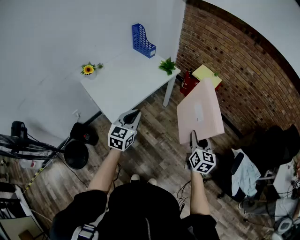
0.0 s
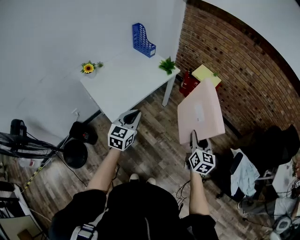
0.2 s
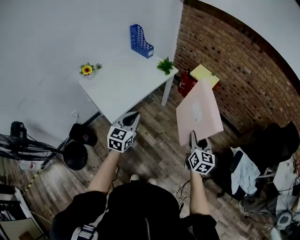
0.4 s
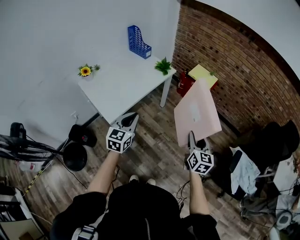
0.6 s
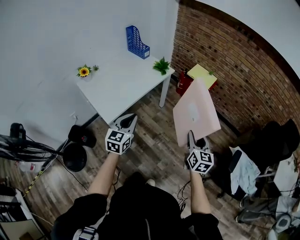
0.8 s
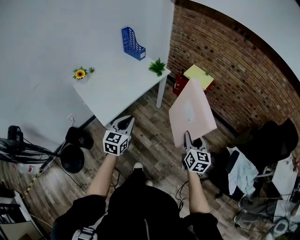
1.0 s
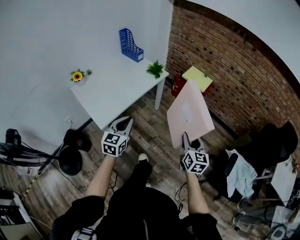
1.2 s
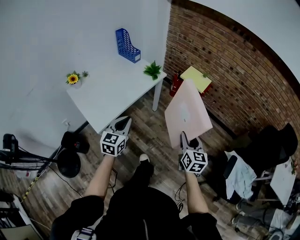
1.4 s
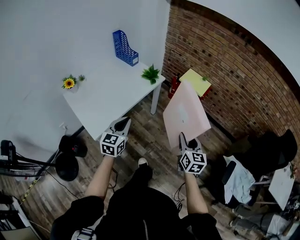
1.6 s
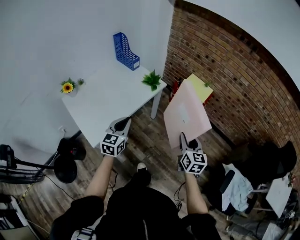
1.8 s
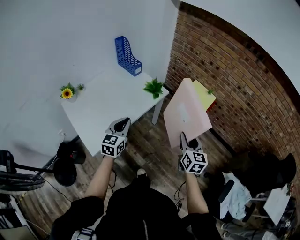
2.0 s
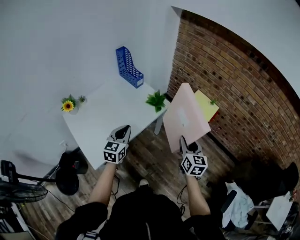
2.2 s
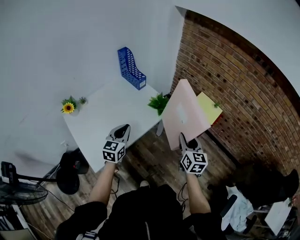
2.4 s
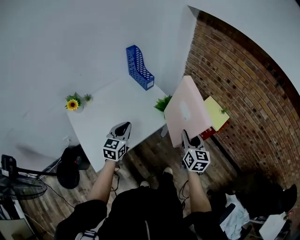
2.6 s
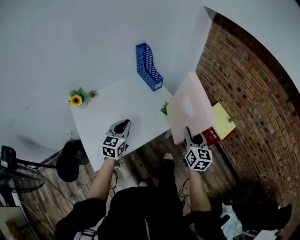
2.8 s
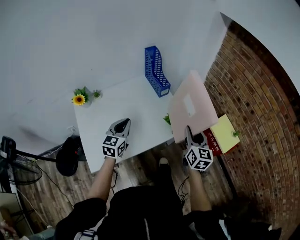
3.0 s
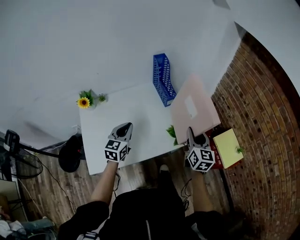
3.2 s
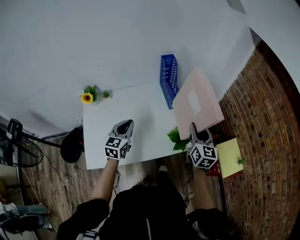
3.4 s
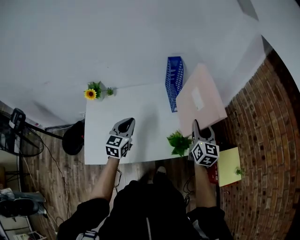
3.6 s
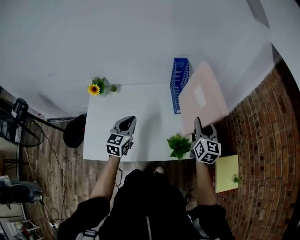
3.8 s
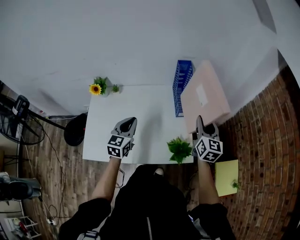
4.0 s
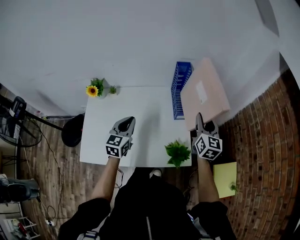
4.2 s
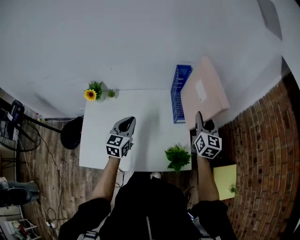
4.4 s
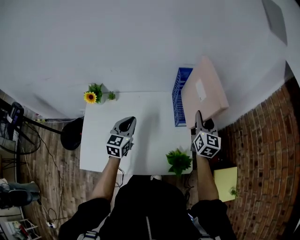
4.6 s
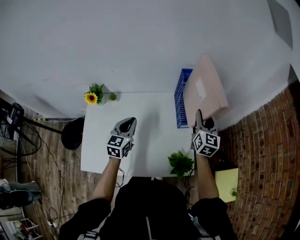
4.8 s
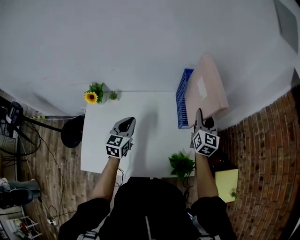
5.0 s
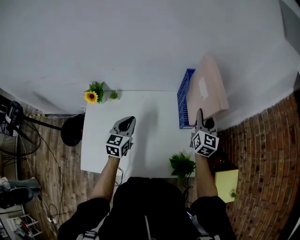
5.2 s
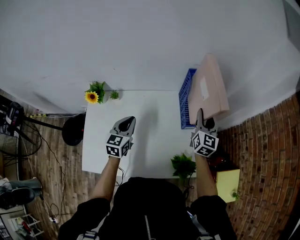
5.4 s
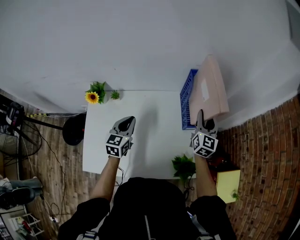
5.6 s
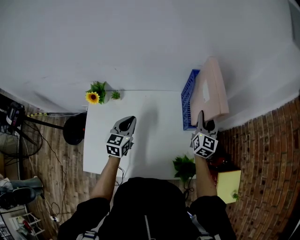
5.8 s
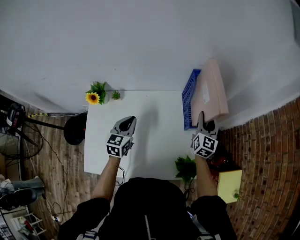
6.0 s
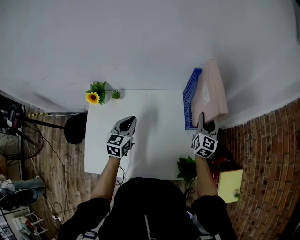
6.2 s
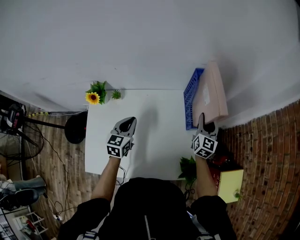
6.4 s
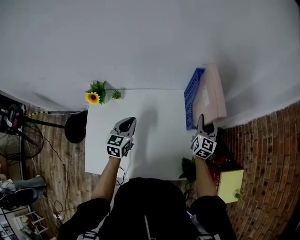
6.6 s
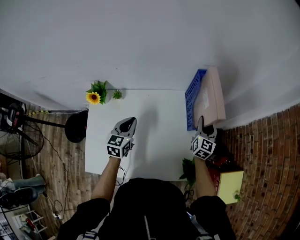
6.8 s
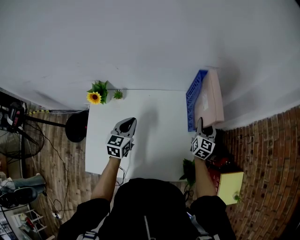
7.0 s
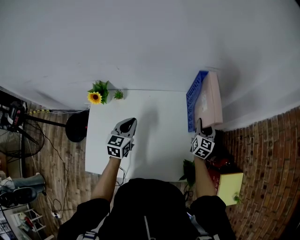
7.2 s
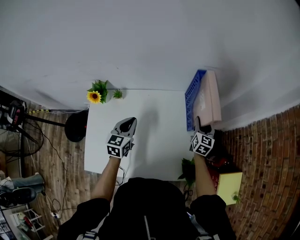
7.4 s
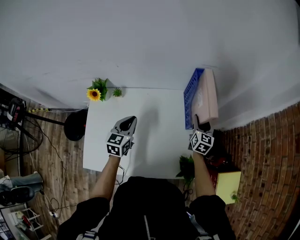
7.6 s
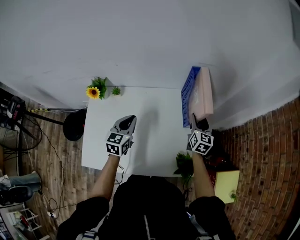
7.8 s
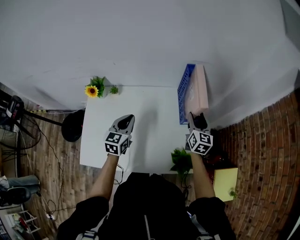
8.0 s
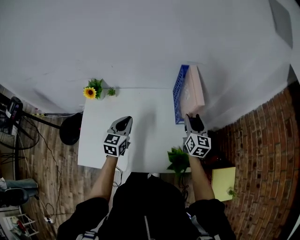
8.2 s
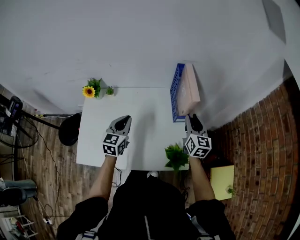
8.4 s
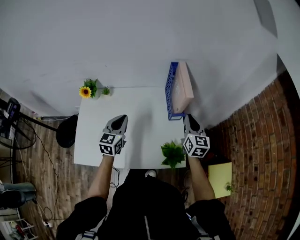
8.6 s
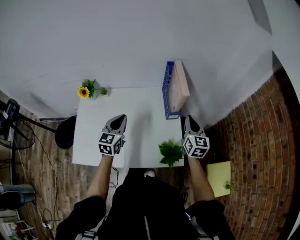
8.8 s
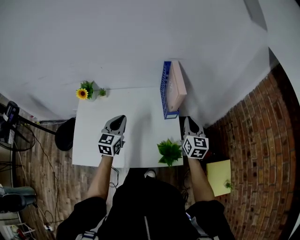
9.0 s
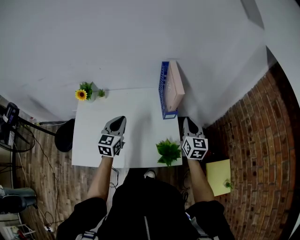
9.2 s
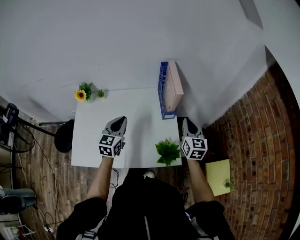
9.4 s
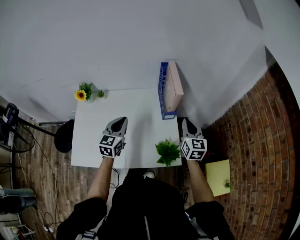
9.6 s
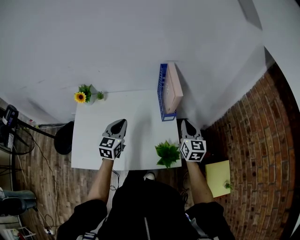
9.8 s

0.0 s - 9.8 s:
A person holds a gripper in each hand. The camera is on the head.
0.0 s - 1.4 s: The left gripper moves roughly 5 cm. The right gripper travels forward by some 5 cm.
1.4 s - 2.8 s: The grippers both shift forward by about 35 cm.
2.8 s - 4.2 s: The right gripper ends up approximately 40 cm from where it was, and changes its angle by approximately 30 degrees. The left gripper changes place by approximately 15 cm, and swivels roughly 30 degrees.
4.2 s - 5.6 s: The grippers both shift forward and to the left by approximately 10 cm.
5.6 s - 7.0 s: The right gripper travels downward by some 10 cm.
7.0 s - 8.4 s: The left gripper goes about 10 cm backward, to the right and upward. The right gripper heads upward and backward, covering about 15 cm.
8.4 s - 9.8 s: The left gripper moves about 5 cm. The right gripper is displaced backward by approximately 5 cm, and closes.

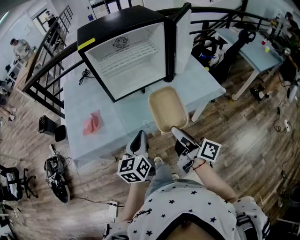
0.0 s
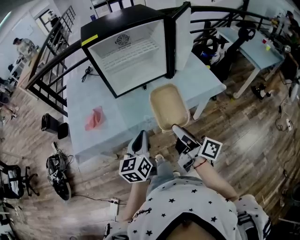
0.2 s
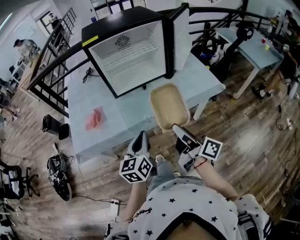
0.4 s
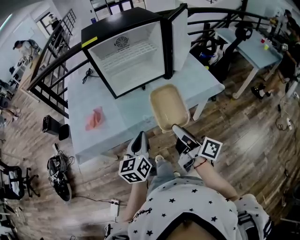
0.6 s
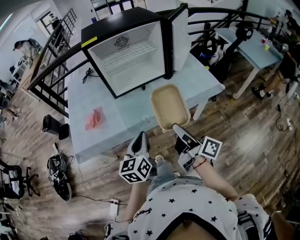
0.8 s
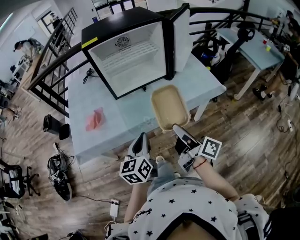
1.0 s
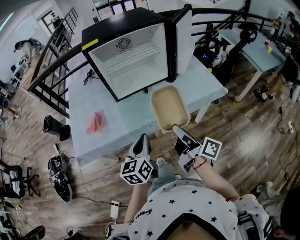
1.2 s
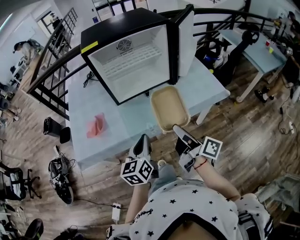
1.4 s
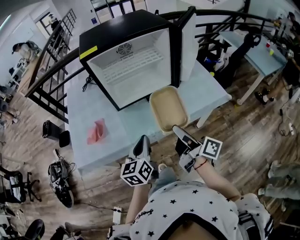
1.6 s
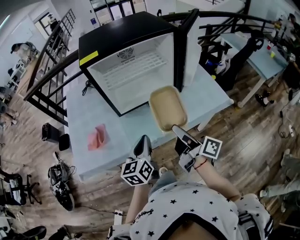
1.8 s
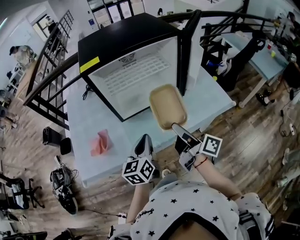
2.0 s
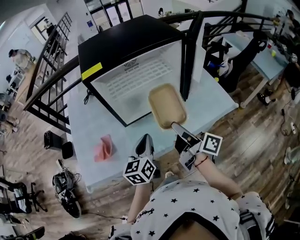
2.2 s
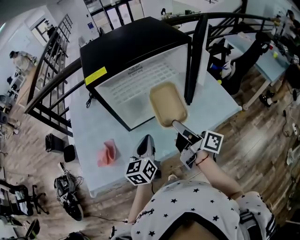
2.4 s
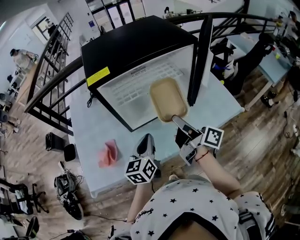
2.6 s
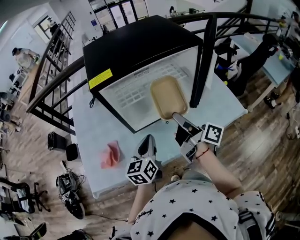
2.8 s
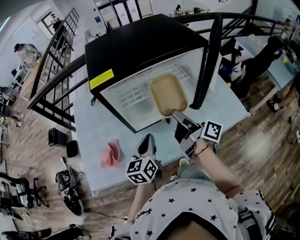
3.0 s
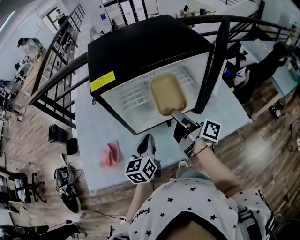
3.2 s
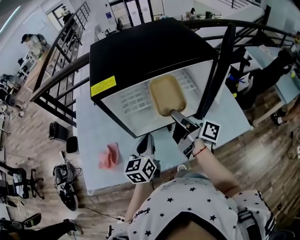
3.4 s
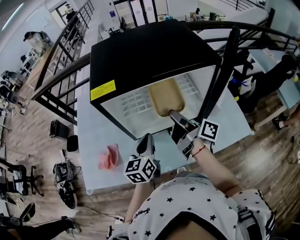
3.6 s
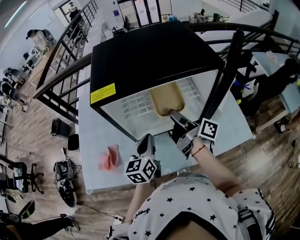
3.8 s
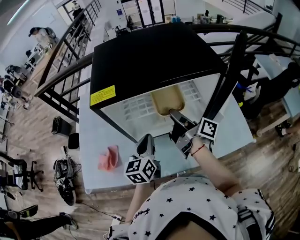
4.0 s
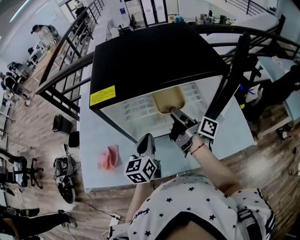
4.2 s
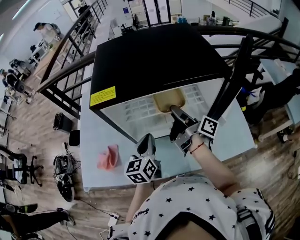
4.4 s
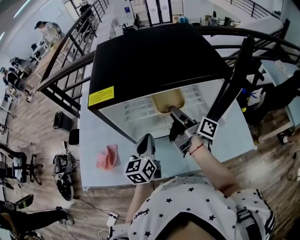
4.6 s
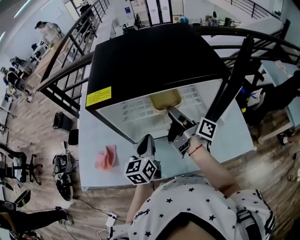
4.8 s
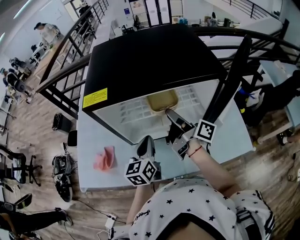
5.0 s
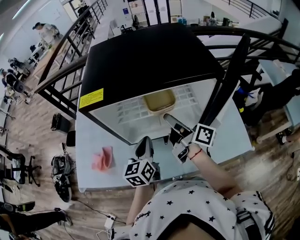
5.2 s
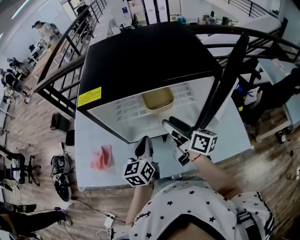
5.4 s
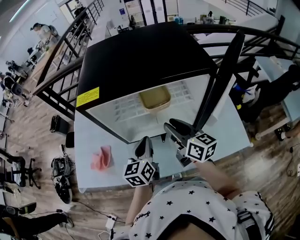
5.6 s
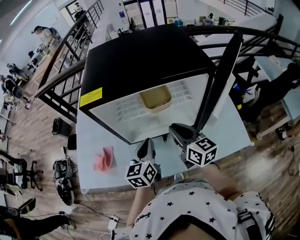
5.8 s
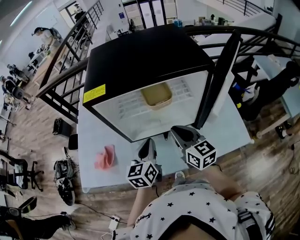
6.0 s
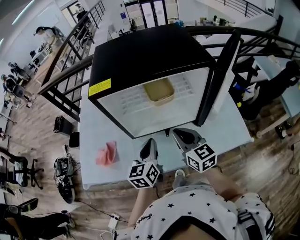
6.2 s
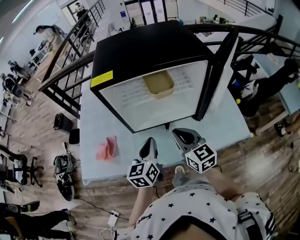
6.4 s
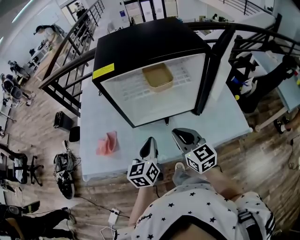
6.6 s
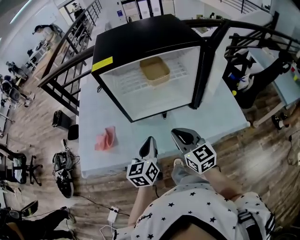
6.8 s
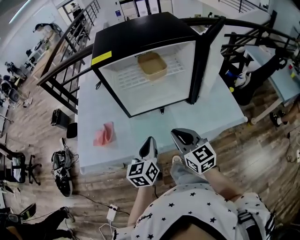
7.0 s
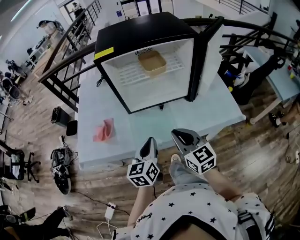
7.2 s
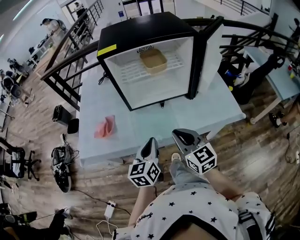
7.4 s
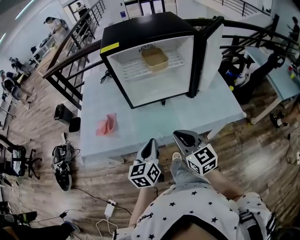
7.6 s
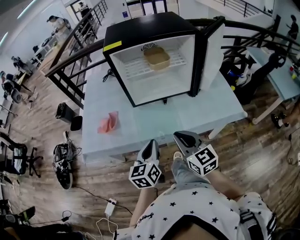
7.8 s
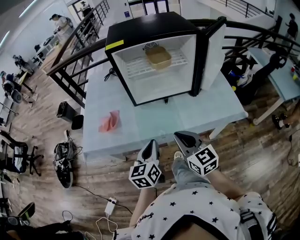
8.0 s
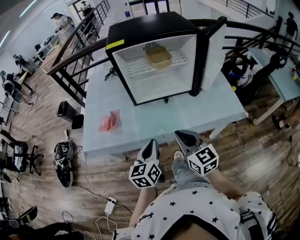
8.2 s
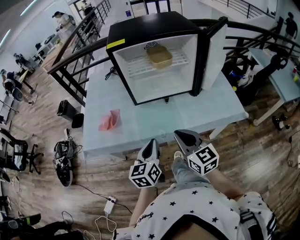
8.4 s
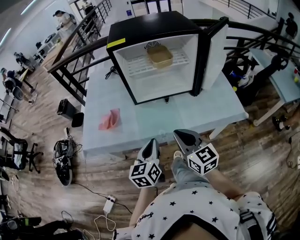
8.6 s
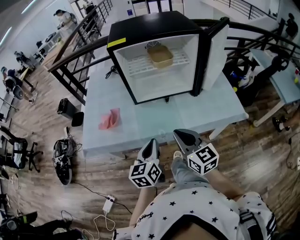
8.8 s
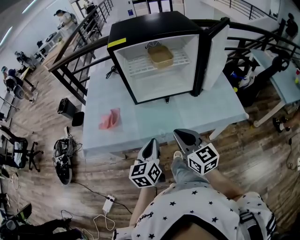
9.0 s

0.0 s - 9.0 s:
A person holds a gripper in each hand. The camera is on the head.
0.0 s - 1.6 s: The right gripper shifts roughly 5 cm forward.
1.6 s - 3.0 s: Both grippers travel together forward, some 20 cm.
3.0 s - 4.4 s: The left gripper goes approximately 5 cm forward. The right gripper travels forward by roughly 10 cm.
4.4 s - 6.0 s: The right gripper shifts some 10 cm backward, rolls counterclockwise, seen from behind, by approximately 70 degrees, and closes its fingers.
6.0 s - 7.6 s: The two grippers go some 20 cm backward.
7.6 s - 9.0 s: There are only small adjustments of the grippers.

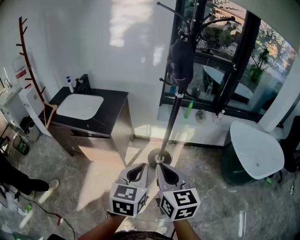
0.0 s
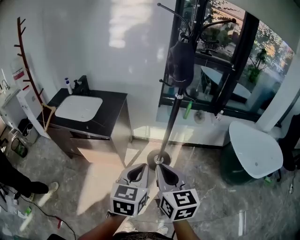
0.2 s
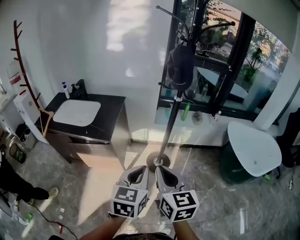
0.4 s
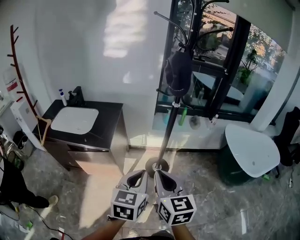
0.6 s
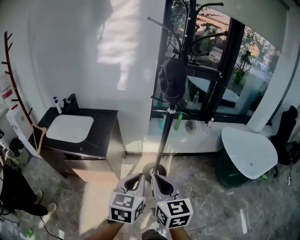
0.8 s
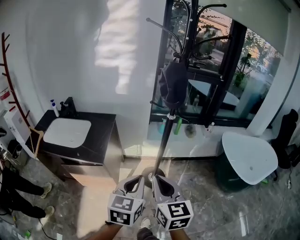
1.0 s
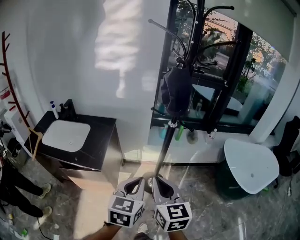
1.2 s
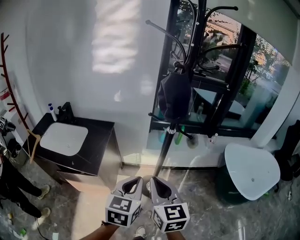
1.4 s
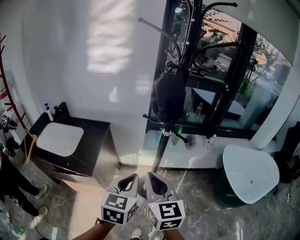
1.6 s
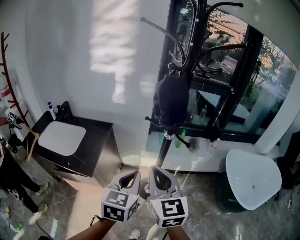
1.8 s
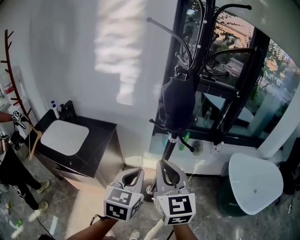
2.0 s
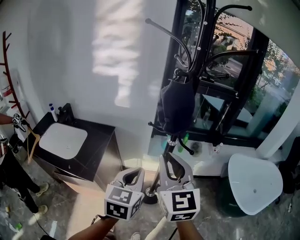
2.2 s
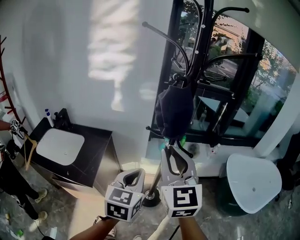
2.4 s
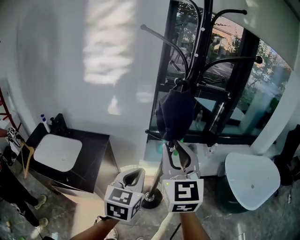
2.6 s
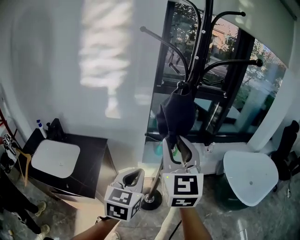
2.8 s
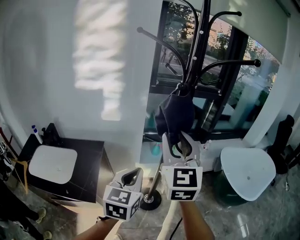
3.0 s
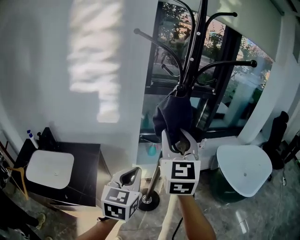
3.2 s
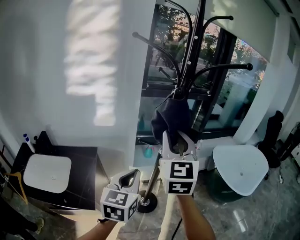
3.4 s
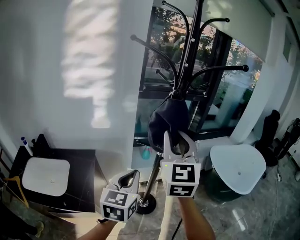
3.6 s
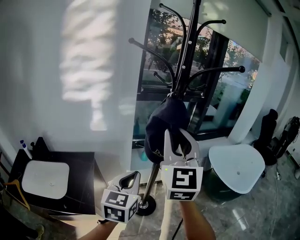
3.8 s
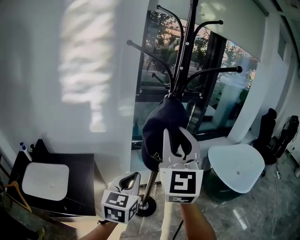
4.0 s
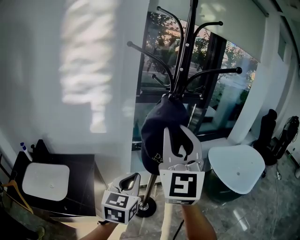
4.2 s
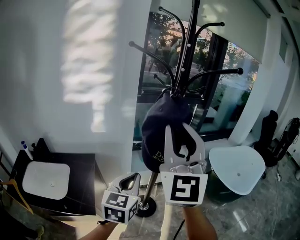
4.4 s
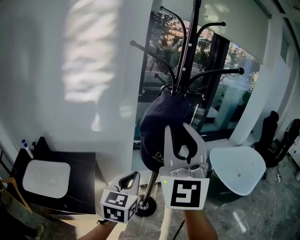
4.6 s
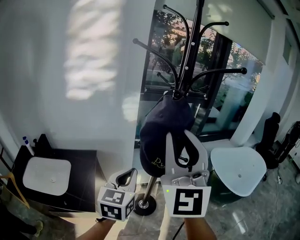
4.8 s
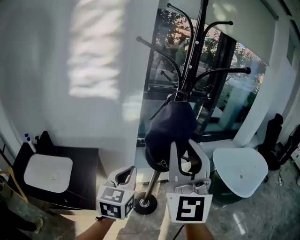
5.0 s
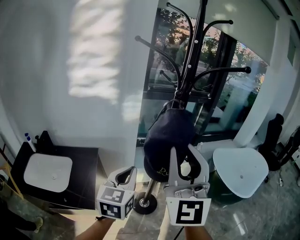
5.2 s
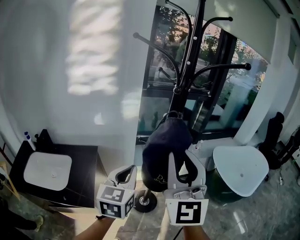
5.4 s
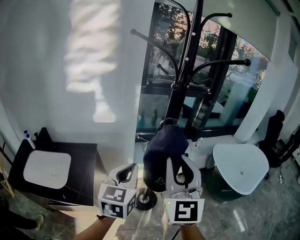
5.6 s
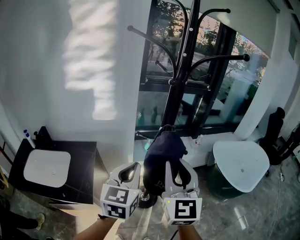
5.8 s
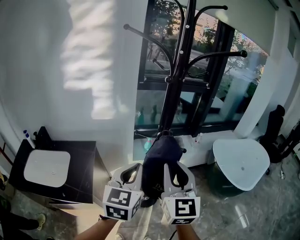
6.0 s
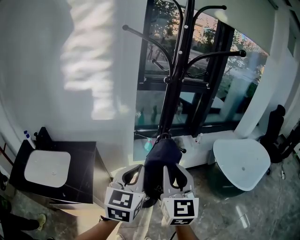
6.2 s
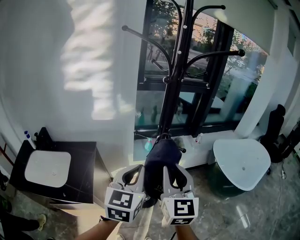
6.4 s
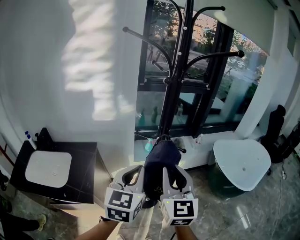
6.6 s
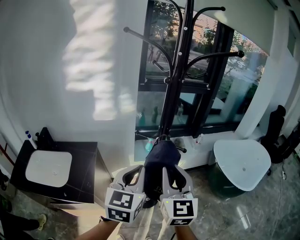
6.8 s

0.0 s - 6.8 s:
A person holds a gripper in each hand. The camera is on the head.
0.0 s - 1.4 s: The grippers both shift forward by roughly 15 cm.
1.4 s - 2.8 s: The left gripper moves forward and upward, some 15 cm, while the right gripper shifts some 25 cm forward and upward, swivels about 30 degrees, and opens.
2.8 s - 4.0 s: The right gripper goes some 10 cm upward, and swivels approximately 20 degrees.
4.0 s - 5.4 s: The right gripper heads backward, covering about 5 cm.
5.4 s - 6.8 s: The left gripper moves to the right, some 5 cm, while the right gripper travels downward by about 15 cm, and changes its angle by approximately 20 degrees.
